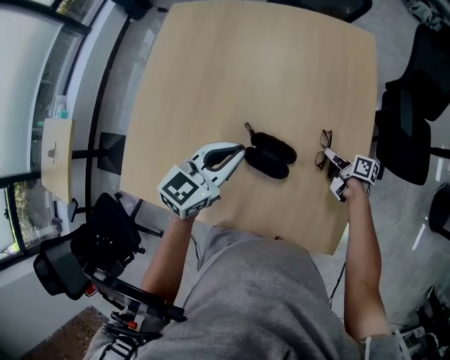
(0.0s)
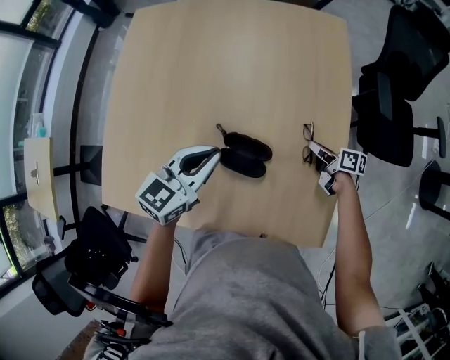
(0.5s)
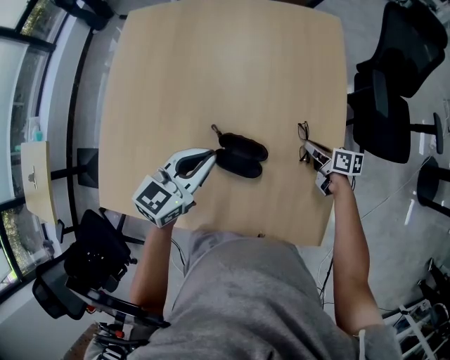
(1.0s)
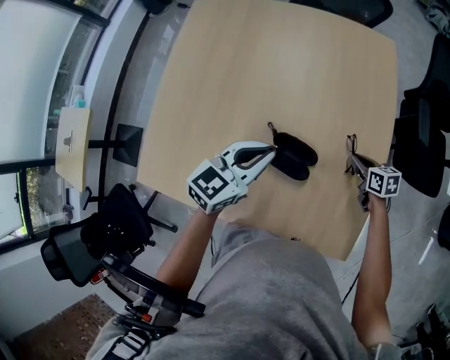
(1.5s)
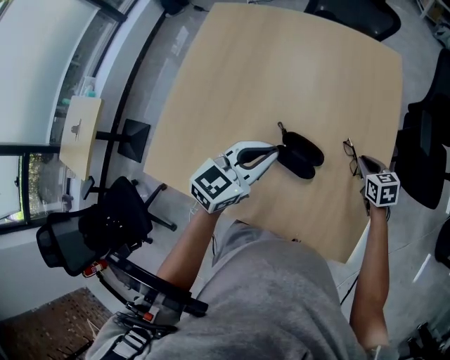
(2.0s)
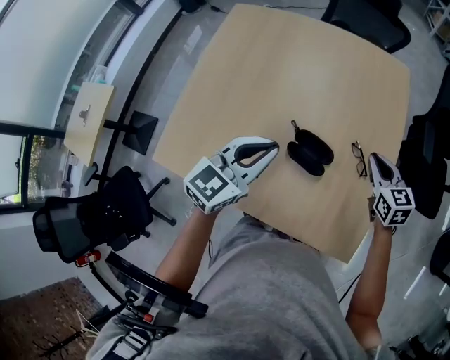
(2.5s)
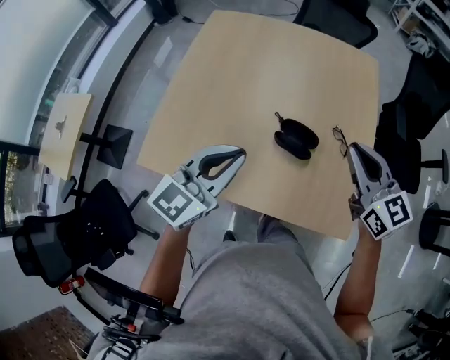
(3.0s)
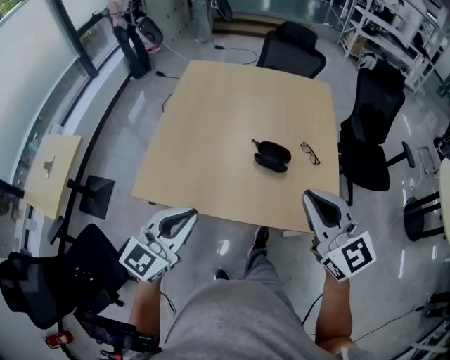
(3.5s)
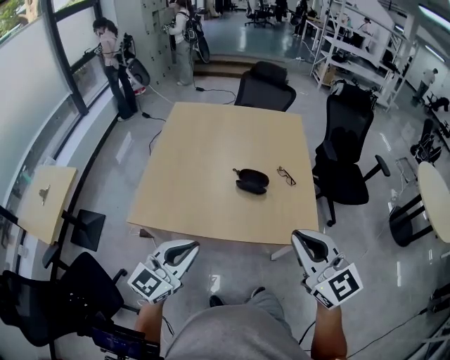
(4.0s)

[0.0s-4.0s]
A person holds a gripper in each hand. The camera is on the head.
0.0s to 2.0s: The right gripper heads upward, covering approximately 5 cm, and twists about 60 degrees counterclockwise, seen from behind.
2.0s to 4.0s: The two grippers travel together, backward, about 50 cm. The right gripper shifts some 40 cm upward, and angles its fingers upward, by approximately 40 degrees.

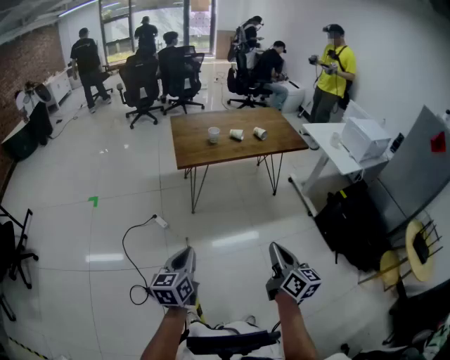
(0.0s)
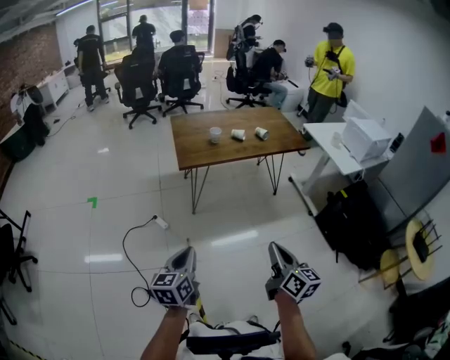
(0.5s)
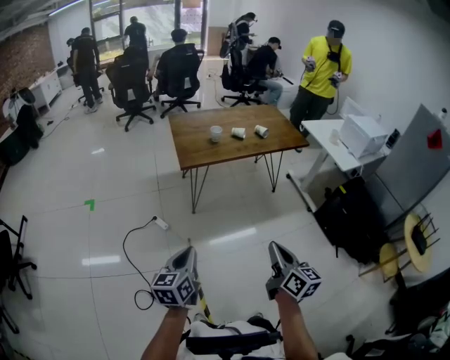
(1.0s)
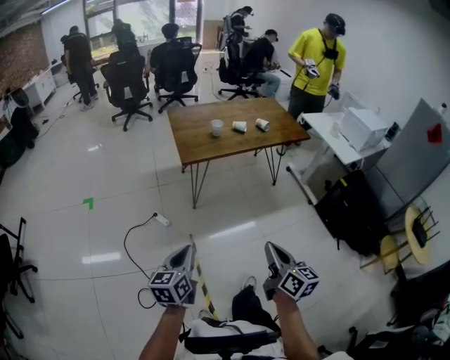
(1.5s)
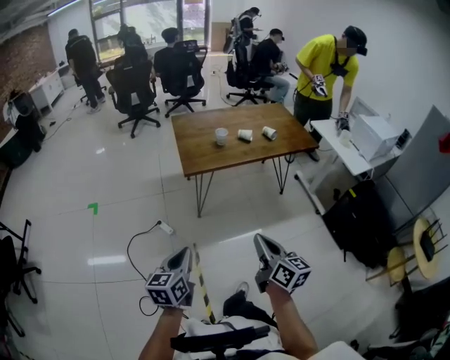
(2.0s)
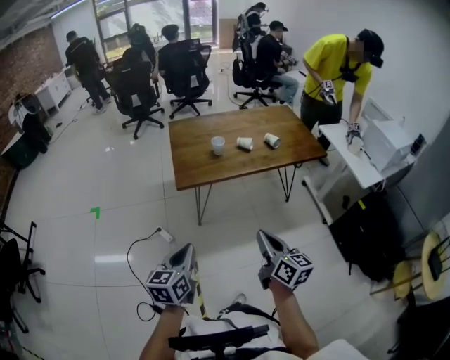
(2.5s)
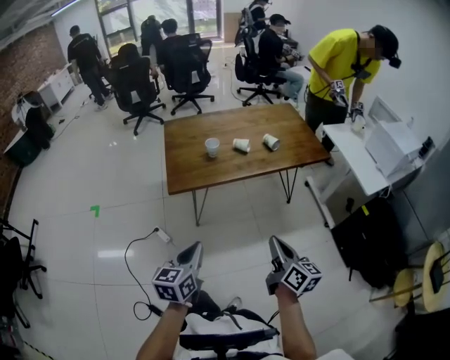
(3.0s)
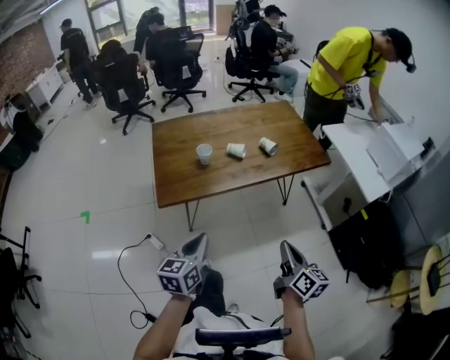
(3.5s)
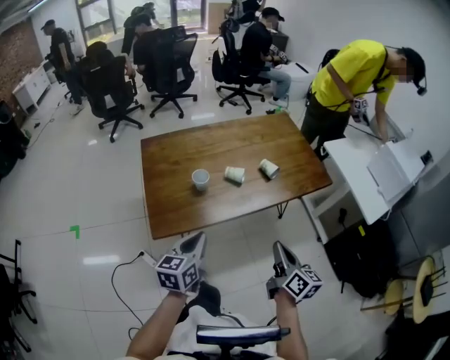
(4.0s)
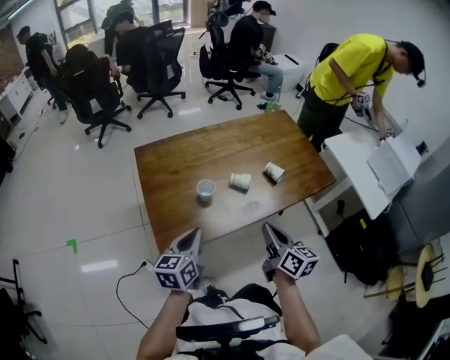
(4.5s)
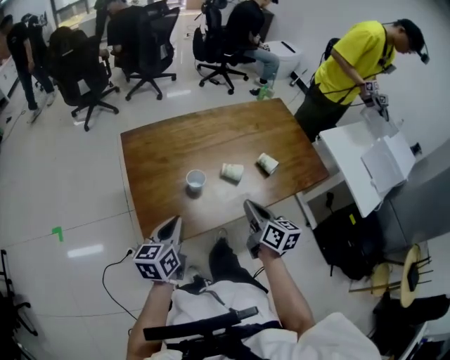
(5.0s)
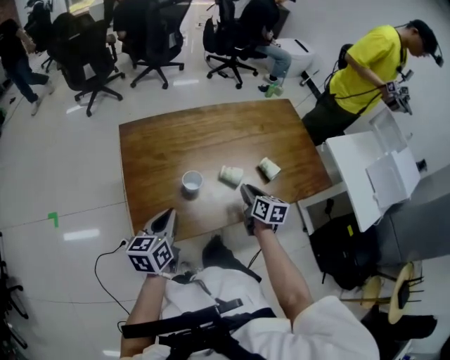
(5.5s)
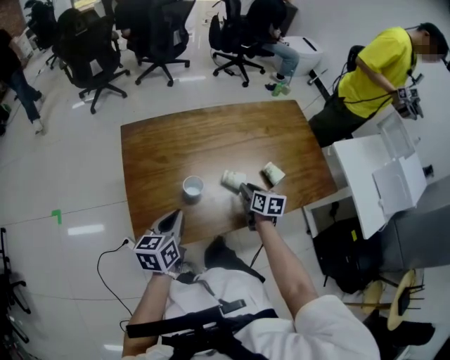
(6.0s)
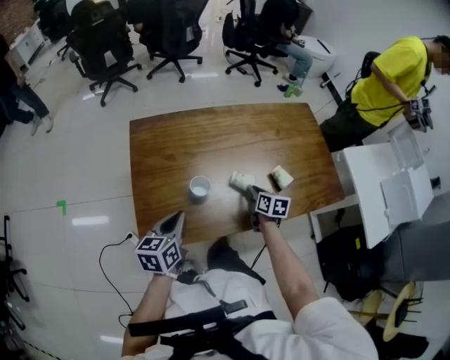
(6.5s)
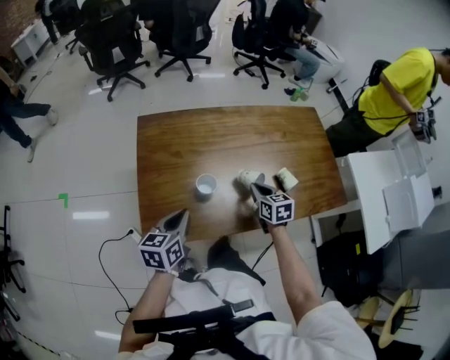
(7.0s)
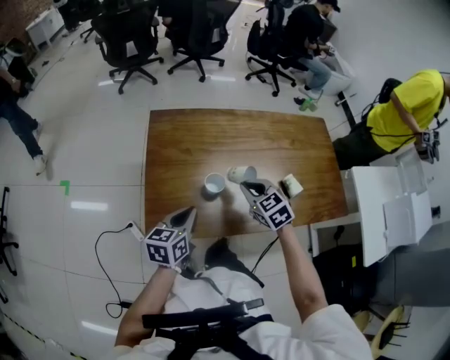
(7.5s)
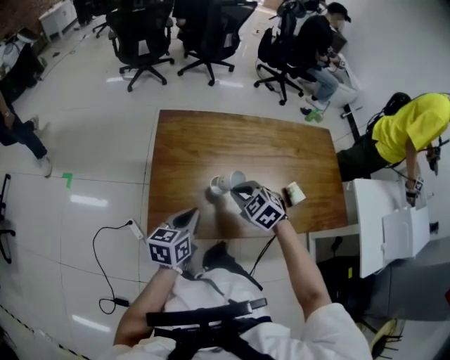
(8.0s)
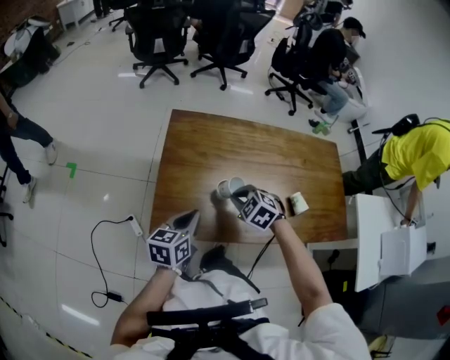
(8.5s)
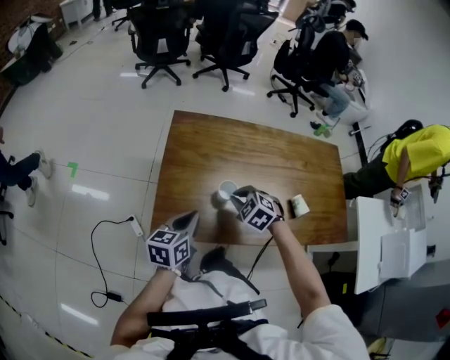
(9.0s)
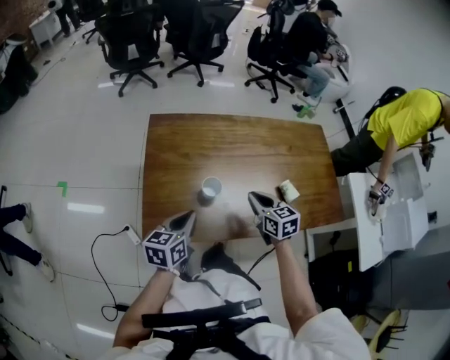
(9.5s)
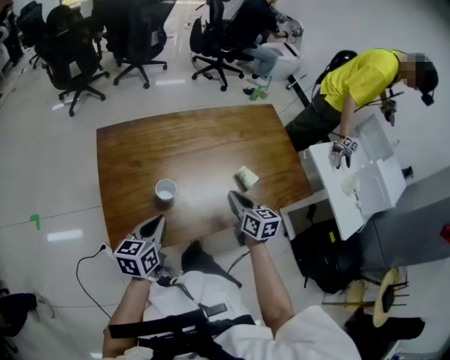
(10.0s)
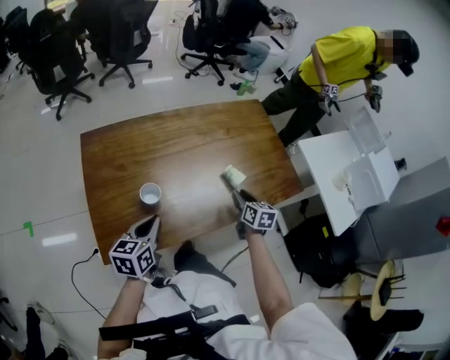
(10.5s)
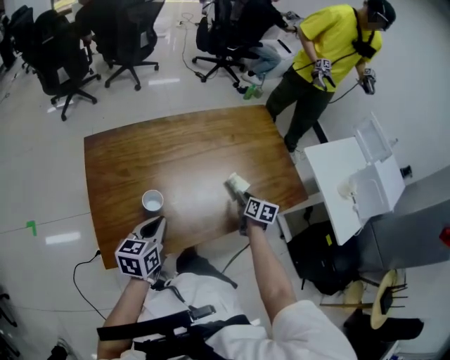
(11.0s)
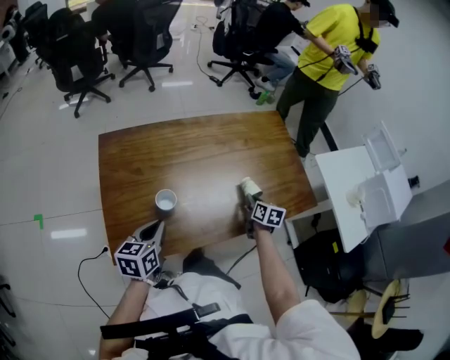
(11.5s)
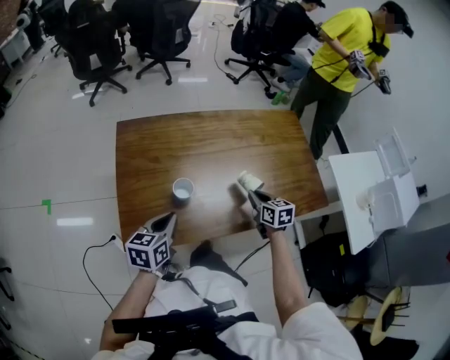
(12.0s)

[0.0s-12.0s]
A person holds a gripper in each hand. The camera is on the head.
0.0s to 2.0s: The left gripper goes some 15 cm forward and to the left. Meanwhile the right gripper moves to the left and forward, approximately 20 cm.
2.0s to 4.0s: Both grippers are carried forward and to the right, roughly 50 cm.
4.0s to 6.0s: The left gripper travels forward by approximately 15 cm. Meanwhile the right gripper is displaced forward and downward by about 40 cm, swivels approximately 30 degrees, and opens its fingers.
6.0s to 8.0s: The right gripper goes some 20 cm to the left and upward, twists about 70 degrees counterclockwise, seen from behind, and closes up.
8.0s to 10.0s: The left gripper travels to the right by some 5 cm. Meanwhile the right gripper shifts some 20 cm to the right, and twists approximately 60 degrees clockwise, seen from behind.
10.0s to 12.0s: The right gripper moves downward, about 5 cm, goes to the right and returns, roughly 15 cm each way, and opens and closes again.

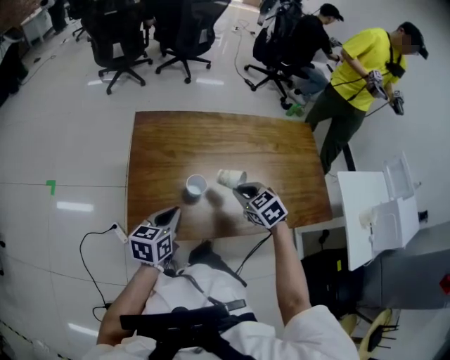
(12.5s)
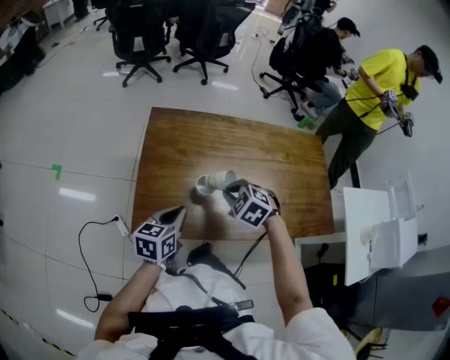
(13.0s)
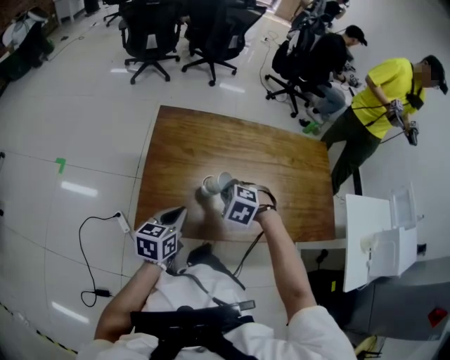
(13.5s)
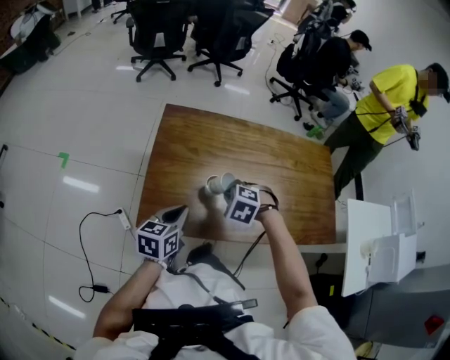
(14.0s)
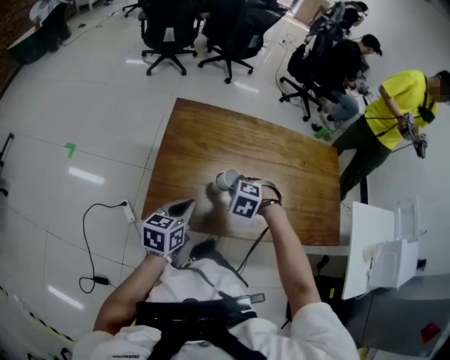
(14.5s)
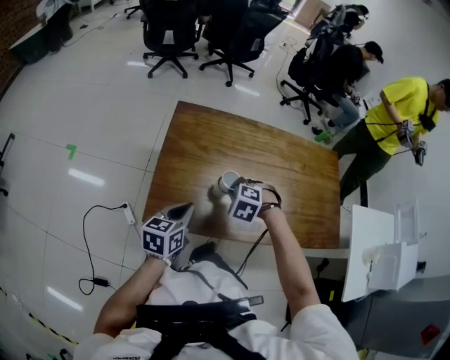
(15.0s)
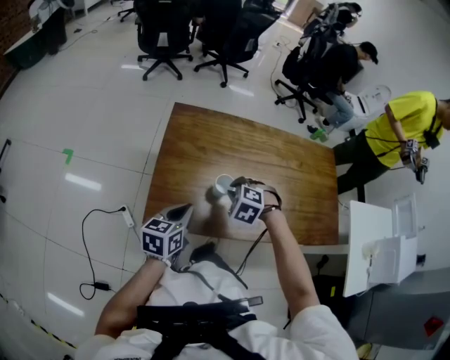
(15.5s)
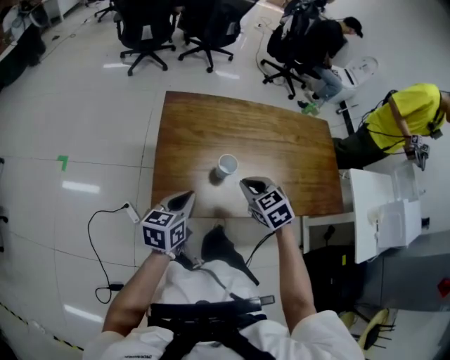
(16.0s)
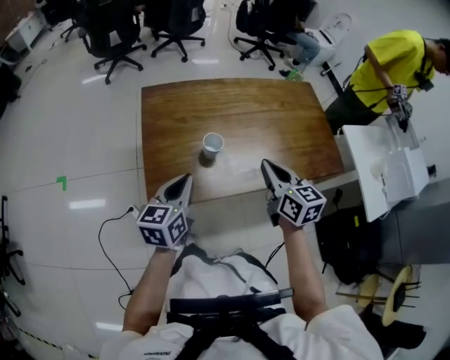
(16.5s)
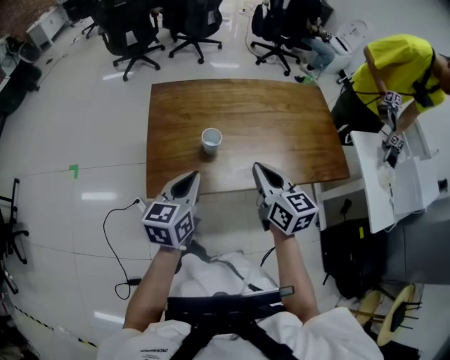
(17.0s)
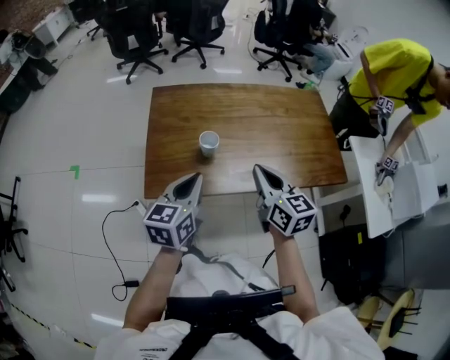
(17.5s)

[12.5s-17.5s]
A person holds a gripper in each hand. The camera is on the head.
12.5s to 15.0s: The left gripper moves some 5 cm; the right gripper moves approximately 15 cm, and rotates around the line of its fingers by some 40 degrees, counterclockwise from behind.
15.0s to 17.5s: The right gripper moves upward, to the right and backward, some 25 cm, and points its fingers approximately 60 degrees further upward. Meanwhile the left gripper is displaced upward, to the right and backward by about 15 cm.

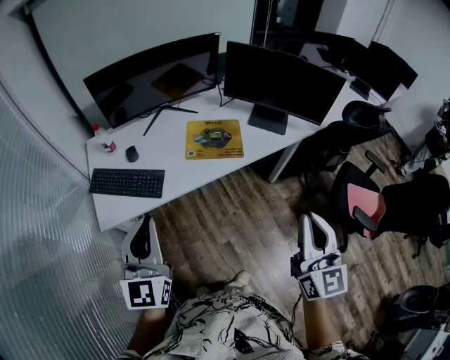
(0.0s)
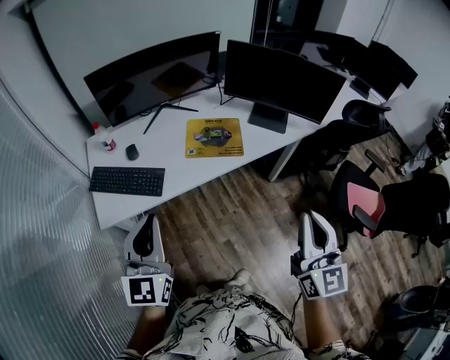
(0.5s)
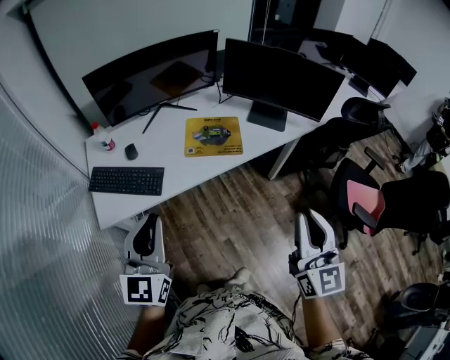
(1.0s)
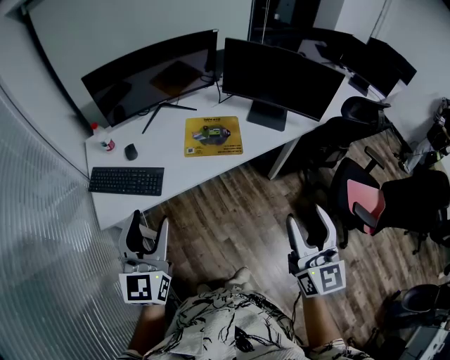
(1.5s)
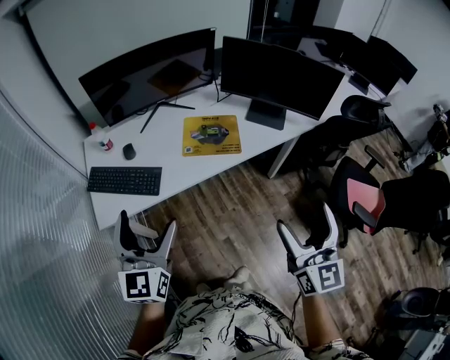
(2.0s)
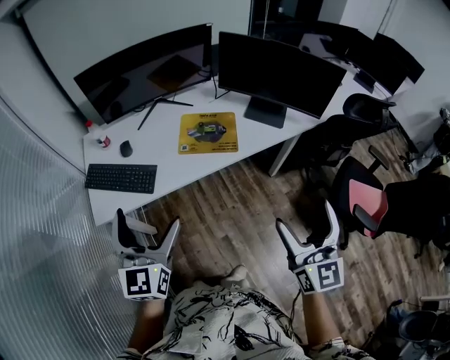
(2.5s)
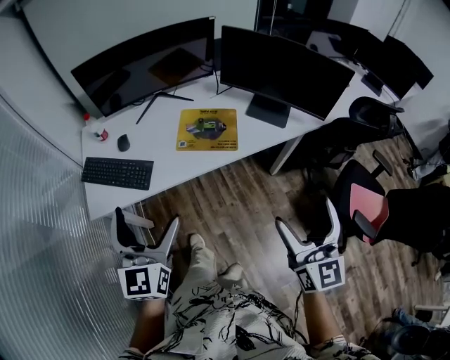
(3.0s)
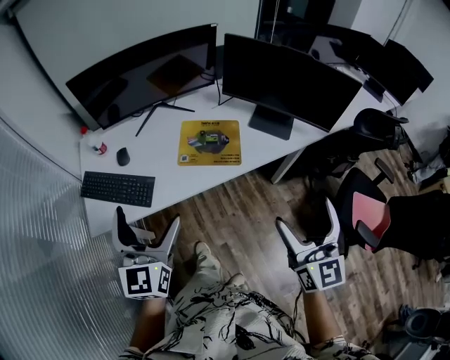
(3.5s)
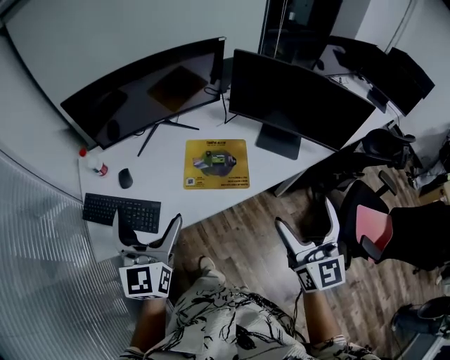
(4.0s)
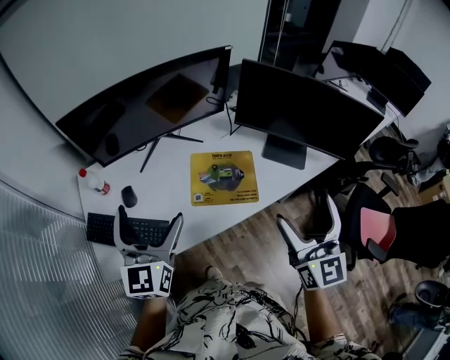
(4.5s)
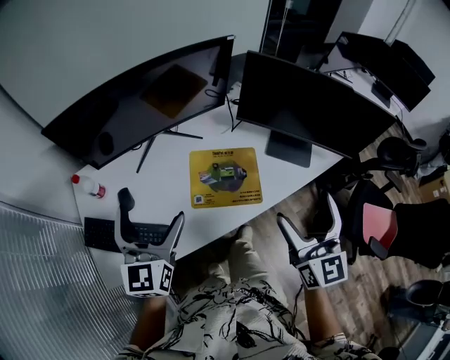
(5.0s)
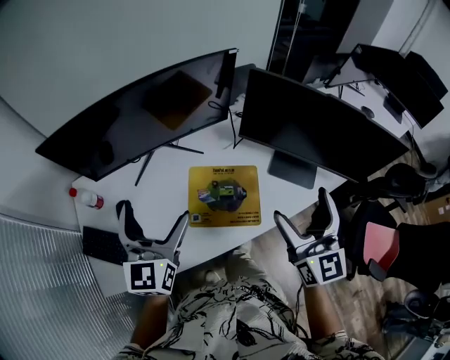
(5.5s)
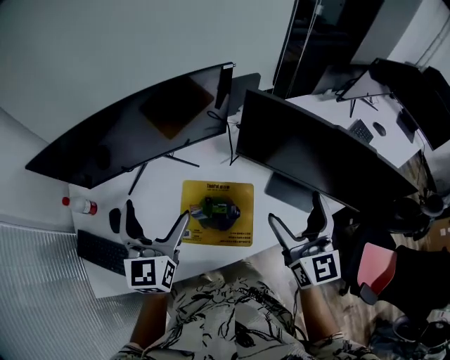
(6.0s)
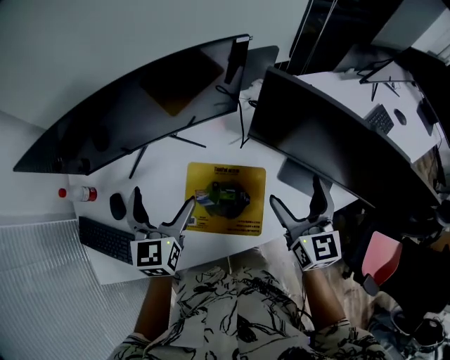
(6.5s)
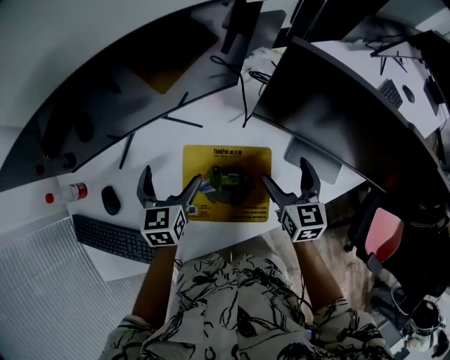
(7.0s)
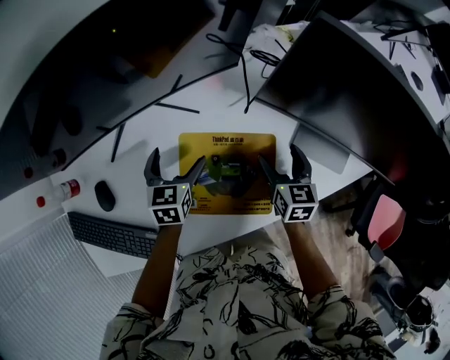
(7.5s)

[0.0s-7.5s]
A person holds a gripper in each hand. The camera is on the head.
0.0s to 2.0s: The right gripper opens up. Meanwhile the left gripper opens up.
2.0s to 4.0s: Both grippers move forward, some 20 cm.
4.0s to 5.5s: Both grippers move forward, roughly 20 cm.
5.5s to 7.5s: Both grippers travel together downward and forward, approximately 35 cm. The left gripper points its fingers some 40 degrees further downward, while the right gripper points its fingers approximately 40 degrees further downward.
